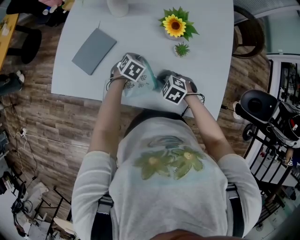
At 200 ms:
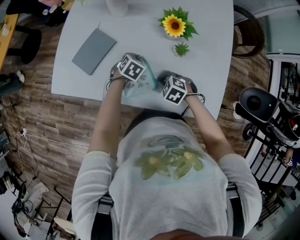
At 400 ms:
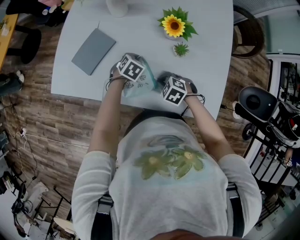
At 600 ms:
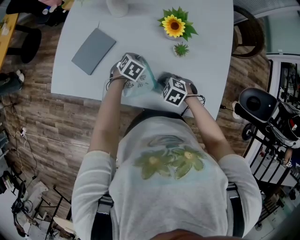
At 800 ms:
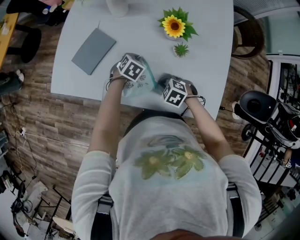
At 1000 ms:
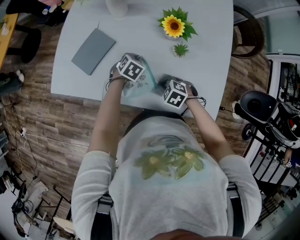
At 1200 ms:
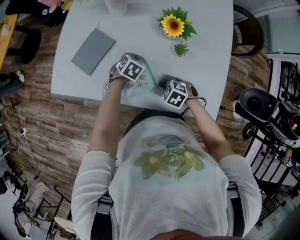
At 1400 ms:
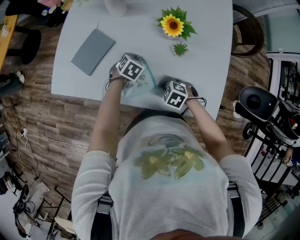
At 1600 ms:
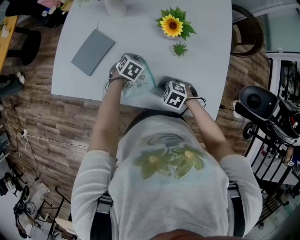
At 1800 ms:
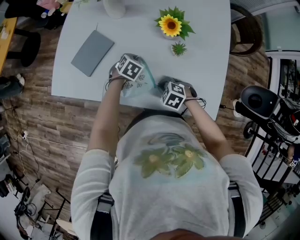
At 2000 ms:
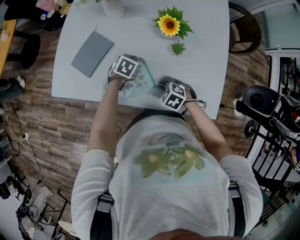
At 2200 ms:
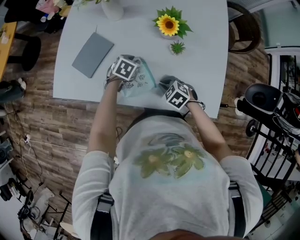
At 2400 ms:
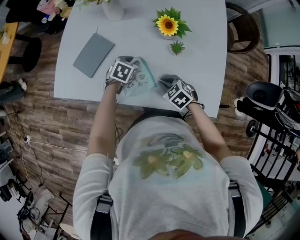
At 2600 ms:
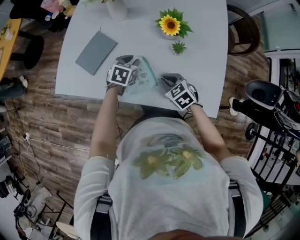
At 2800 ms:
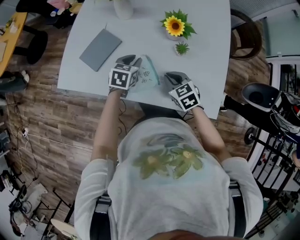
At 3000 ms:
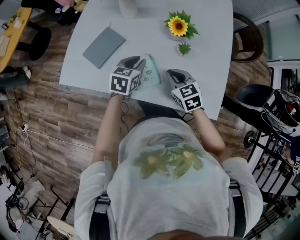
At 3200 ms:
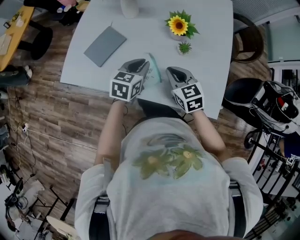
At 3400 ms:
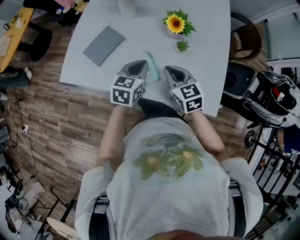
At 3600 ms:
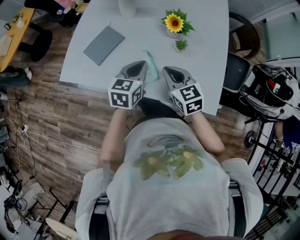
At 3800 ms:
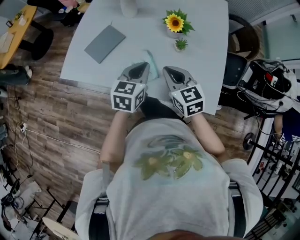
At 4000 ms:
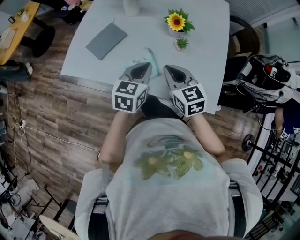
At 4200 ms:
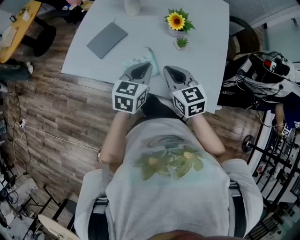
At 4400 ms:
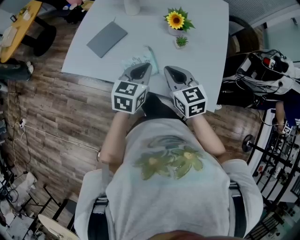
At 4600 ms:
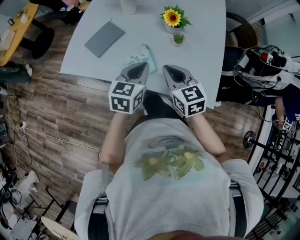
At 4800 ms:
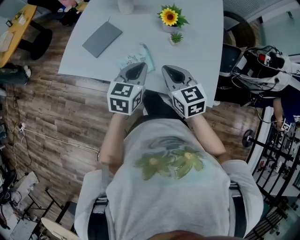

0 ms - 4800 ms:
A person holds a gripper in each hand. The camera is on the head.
0 ms - 1600 ms: The grippers move only a little.
1600 ms - 3200 ms: The right gripper travels upward by roughly 15 cm, and tilts its fingers about 30 degrees upward; the left gripper heads upward and backward, covering roughly 20 cm, and rotates roughly 30 degrees.
3200 ms - 4800 ms: The two grippers go some 10 cm backward and upward.

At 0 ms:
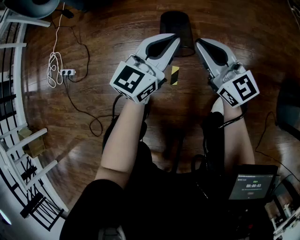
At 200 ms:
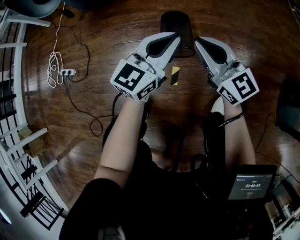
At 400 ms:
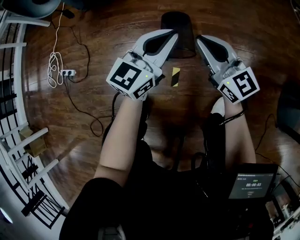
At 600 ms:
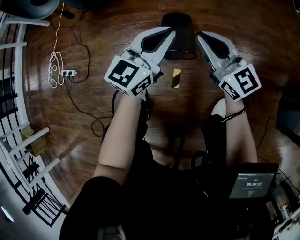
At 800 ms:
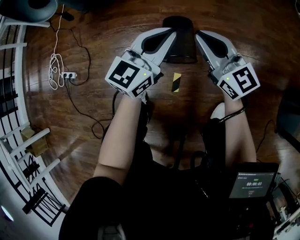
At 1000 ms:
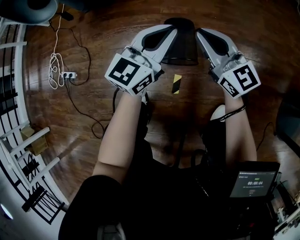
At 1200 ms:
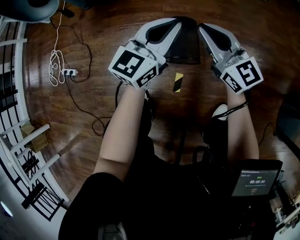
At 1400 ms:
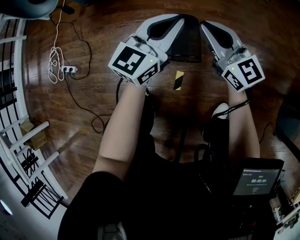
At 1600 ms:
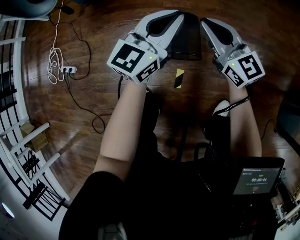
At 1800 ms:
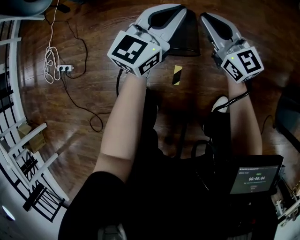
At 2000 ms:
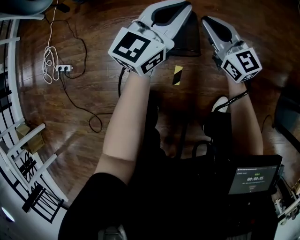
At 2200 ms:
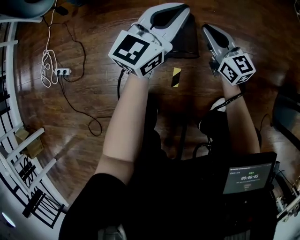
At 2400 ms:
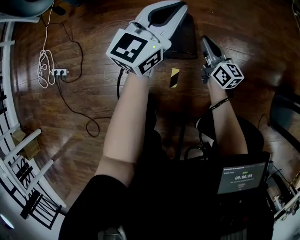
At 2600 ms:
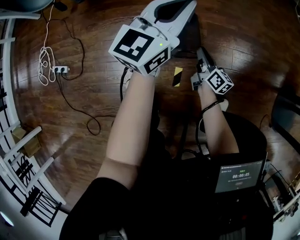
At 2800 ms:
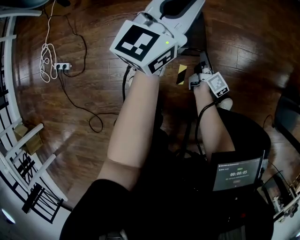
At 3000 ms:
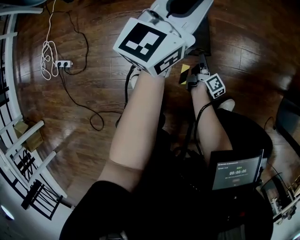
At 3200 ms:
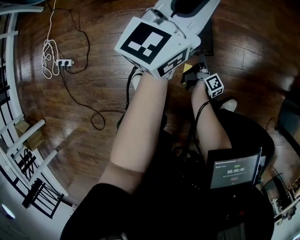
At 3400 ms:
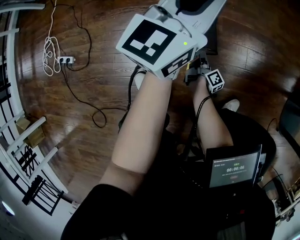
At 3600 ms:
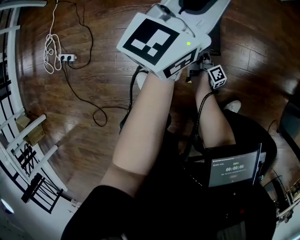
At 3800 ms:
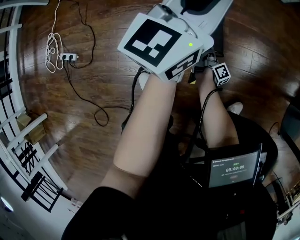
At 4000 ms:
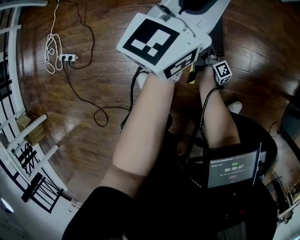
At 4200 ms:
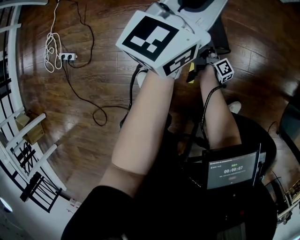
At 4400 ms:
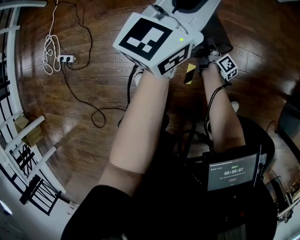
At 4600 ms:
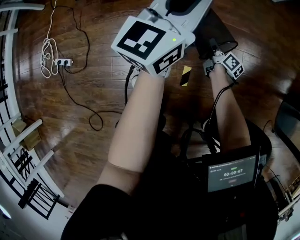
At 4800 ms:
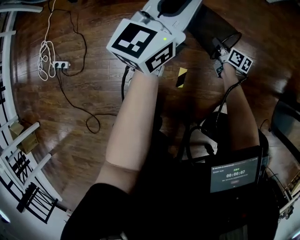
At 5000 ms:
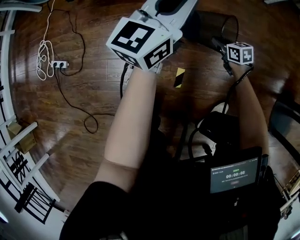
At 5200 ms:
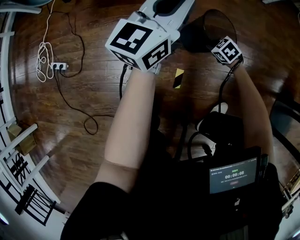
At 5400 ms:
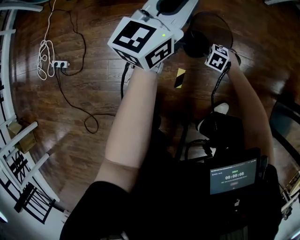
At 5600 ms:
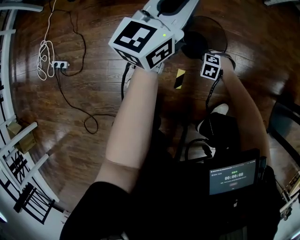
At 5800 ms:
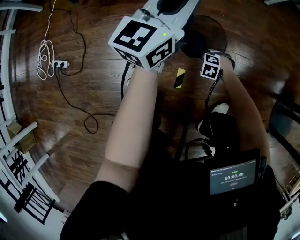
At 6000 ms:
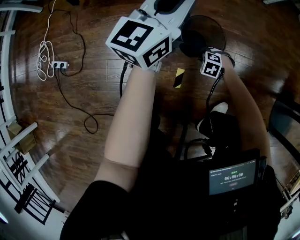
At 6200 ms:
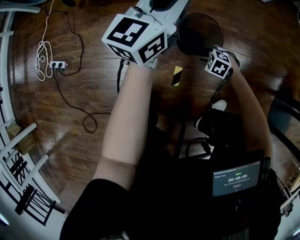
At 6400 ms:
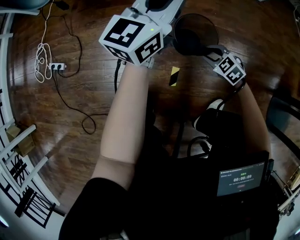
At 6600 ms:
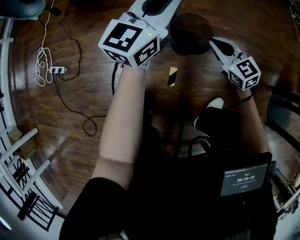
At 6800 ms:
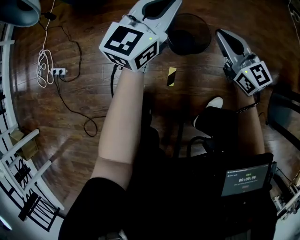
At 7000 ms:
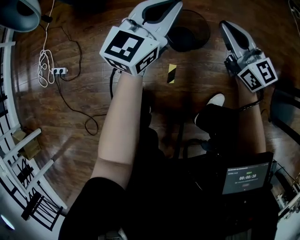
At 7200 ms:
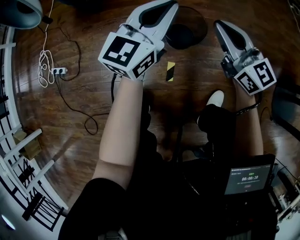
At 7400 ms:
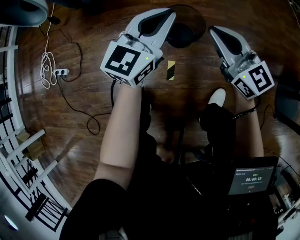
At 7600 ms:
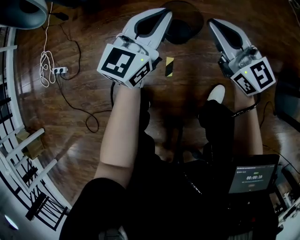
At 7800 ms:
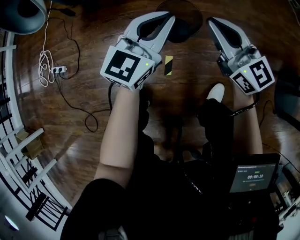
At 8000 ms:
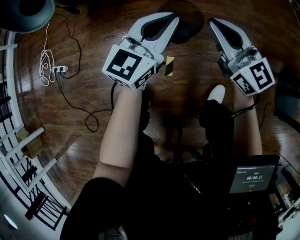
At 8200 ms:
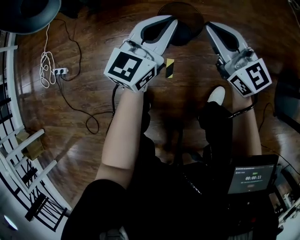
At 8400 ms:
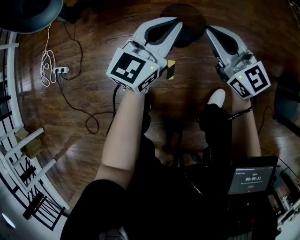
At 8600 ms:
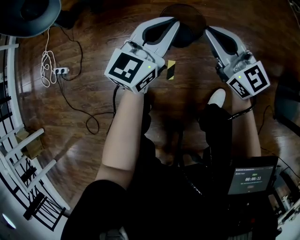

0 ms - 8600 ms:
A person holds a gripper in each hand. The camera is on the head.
0 ms - 1400 ms: Both grippers move forward, about 15 cm.
1400 ms - 2800 ms: The right gripper is displaced downward by about 25 cm, and rolls clockwise, seen from behind, by some 60 degrees, while the left gripper ends up some 5 cm from where it was.
2800 ms - 4400 ms: The right gripper shifts approximately 10 cm forward and downward, and opens, then closes once more.
4400 ms - 5800 ms: The right gripper travels upward and back again, approximately 5 cm each way, and twists roughly 120 degrees counterclockwise, seen from behind.
5800 ms - 7200 ms: The left gripper shifts by approximately 10 cm. Meanwhile the right gripper shifts some 40 cm upward, angles its fingers upward, by some 80 degrees, and opens, then closes again.
7200 ms - 8600 ms: The left gripper heads backward, covering some 5 cm.

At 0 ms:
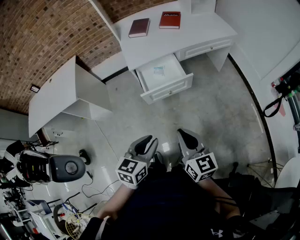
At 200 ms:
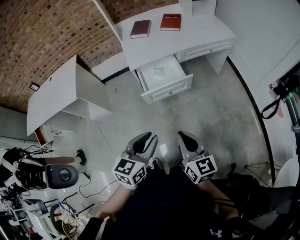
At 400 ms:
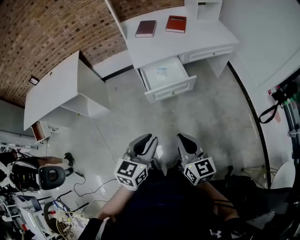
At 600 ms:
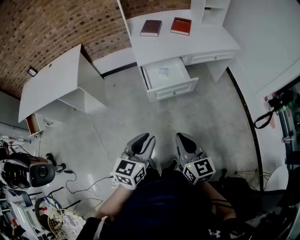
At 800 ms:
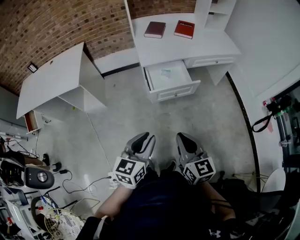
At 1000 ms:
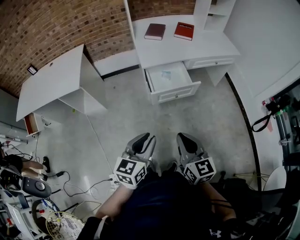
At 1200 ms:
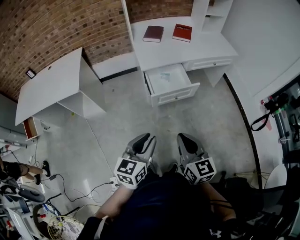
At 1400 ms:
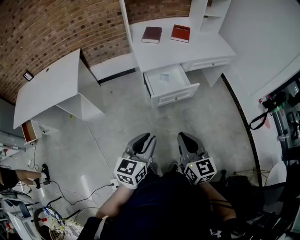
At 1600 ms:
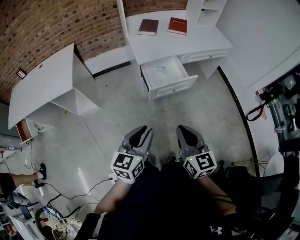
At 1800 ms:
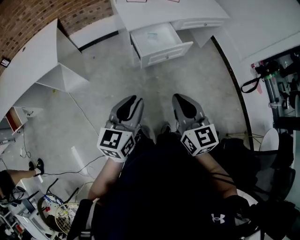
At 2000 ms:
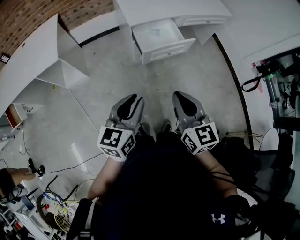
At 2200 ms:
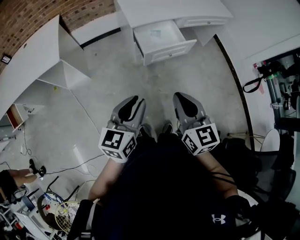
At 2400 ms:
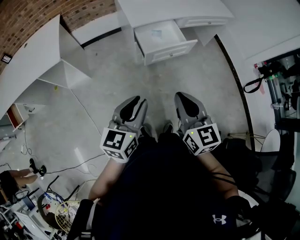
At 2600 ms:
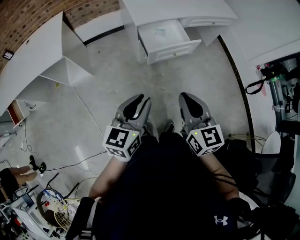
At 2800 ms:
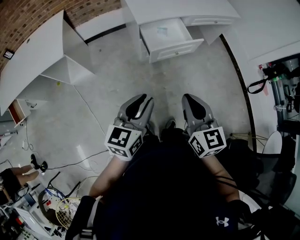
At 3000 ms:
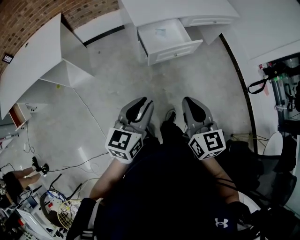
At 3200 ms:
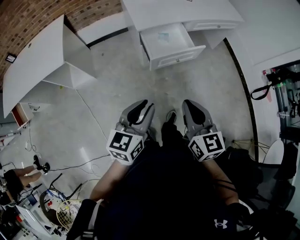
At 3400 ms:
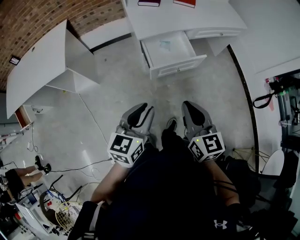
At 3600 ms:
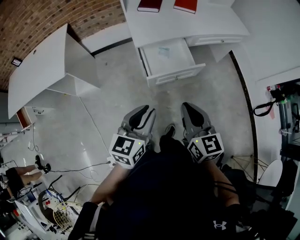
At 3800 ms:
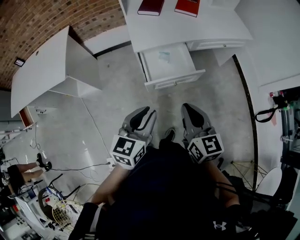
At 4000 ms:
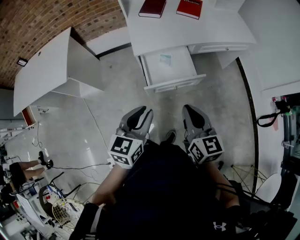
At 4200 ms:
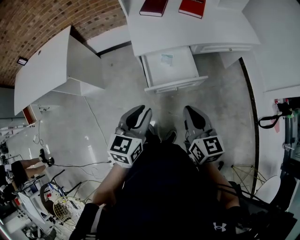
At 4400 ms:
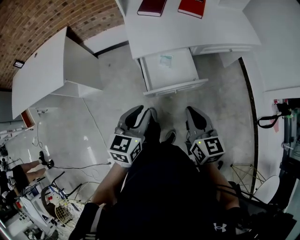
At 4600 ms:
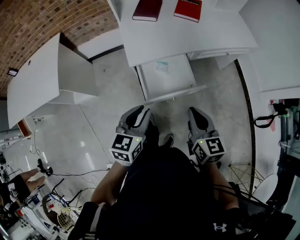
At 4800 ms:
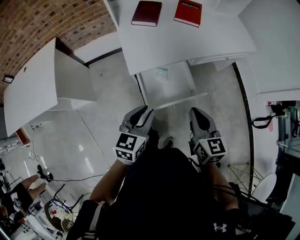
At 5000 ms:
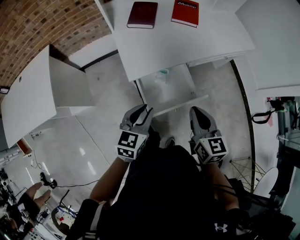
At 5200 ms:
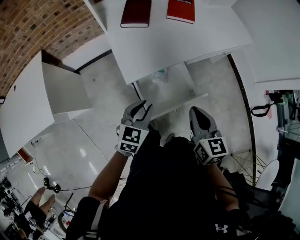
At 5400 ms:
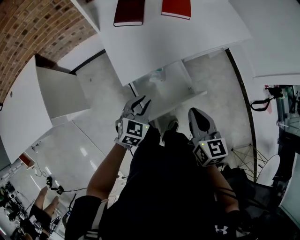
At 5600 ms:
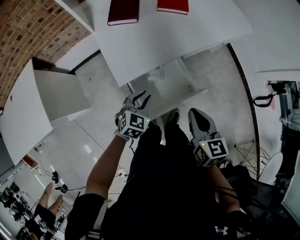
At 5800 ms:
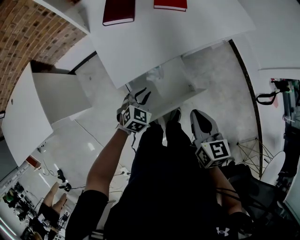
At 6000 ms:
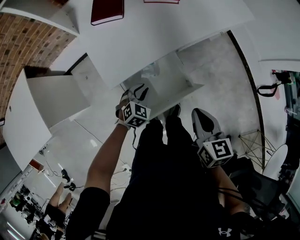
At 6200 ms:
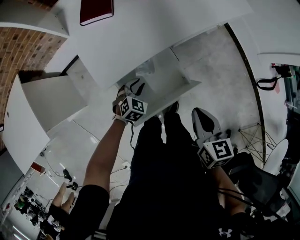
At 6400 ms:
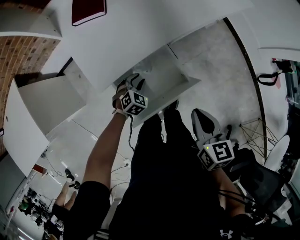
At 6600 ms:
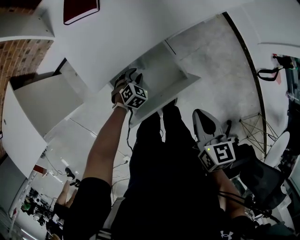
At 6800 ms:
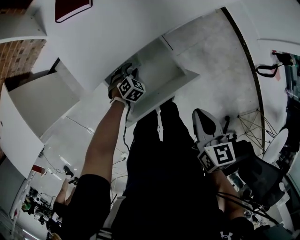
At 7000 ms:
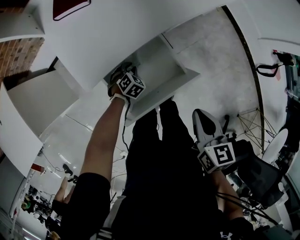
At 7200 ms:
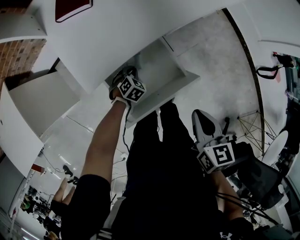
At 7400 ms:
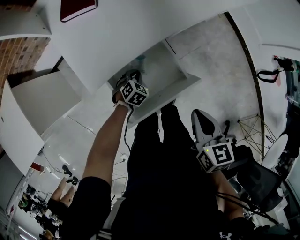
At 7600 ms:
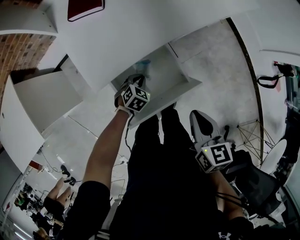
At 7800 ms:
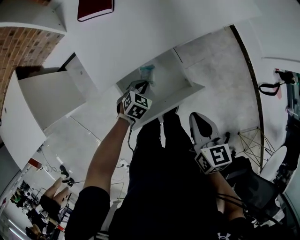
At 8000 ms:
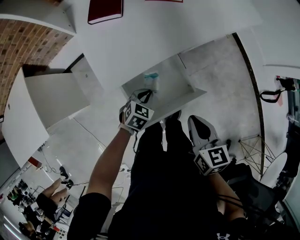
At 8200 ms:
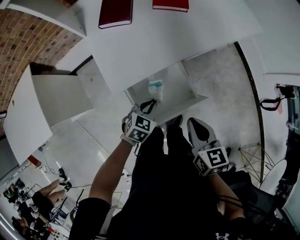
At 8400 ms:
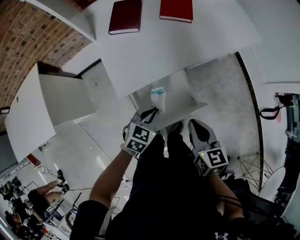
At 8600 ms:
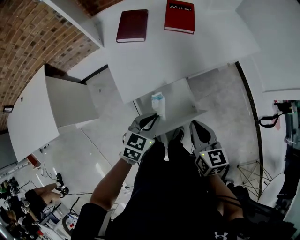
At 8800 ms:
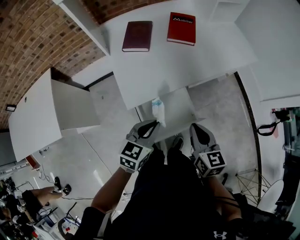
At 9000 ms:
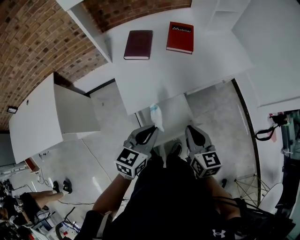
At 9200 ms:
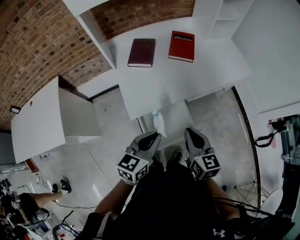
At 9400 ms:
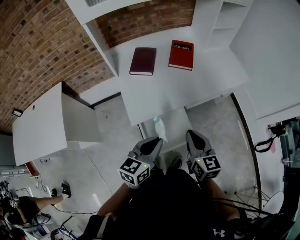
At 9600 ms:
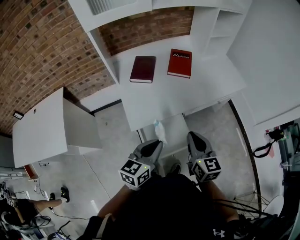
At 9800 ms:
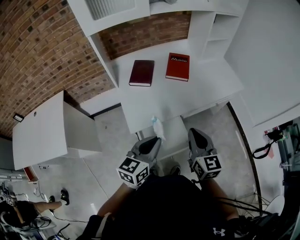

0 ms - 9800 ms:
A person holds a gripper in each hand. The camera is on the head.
0 ms - 1400 ms: The two grippers go roughly 10 cm to the left.
1400 ms - 2800 ms: The grippers make only small movements.
2800 ms - 4200 ms: The two grippers go roughly 25 cm forward and to the right.
4200 ms - 5600 ms: The right gripper heads forward, covering some 15 cm, and changes its angle by approximately 20 degrees, while the left gripper is displaced forward and downward by some 30 cm, and changes its angle by roughly 40 degrees.
5600 ms - 7000 ms: The left gripper travels downward by some 25 cm, and rotates approximately 30 degrees; the right gripper shifts about 10 cm to the right and downward.
7000 ms - 8400 ms: The right gripper heads to the left and upward, covering some 10 cm. Meanwhile the left gripper moves upward, roughly 25 cm, and changes its angle by about 30 degrees.
8400 ms - 9800 ms: The right gripper goes roughly 15 cm upward, and swivels roughly 20 degrees; the left gripper moves upward, about 25 cm, and swivels roughly 30 degrees.
